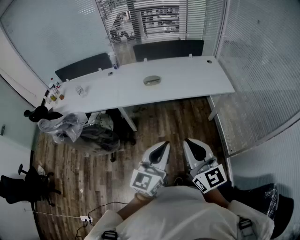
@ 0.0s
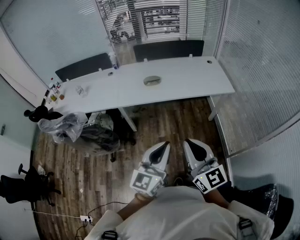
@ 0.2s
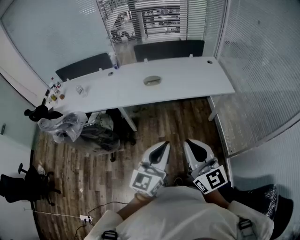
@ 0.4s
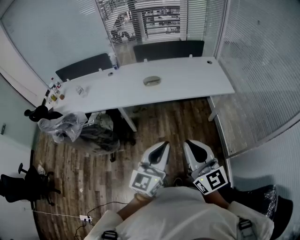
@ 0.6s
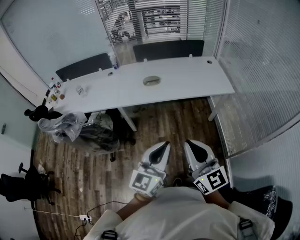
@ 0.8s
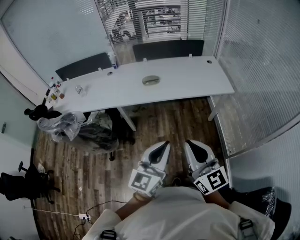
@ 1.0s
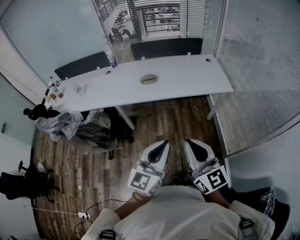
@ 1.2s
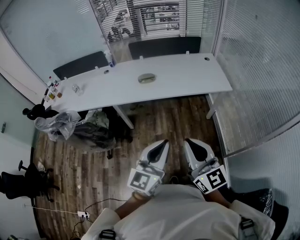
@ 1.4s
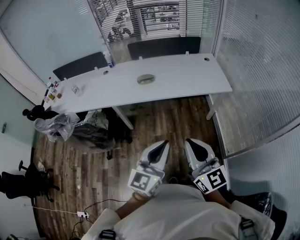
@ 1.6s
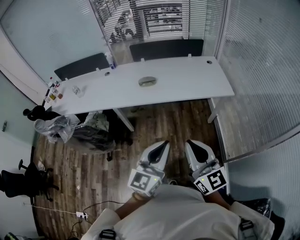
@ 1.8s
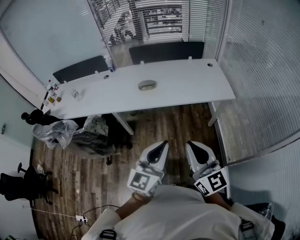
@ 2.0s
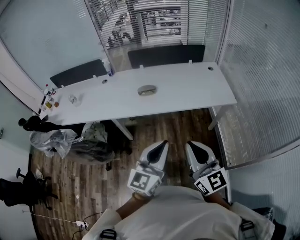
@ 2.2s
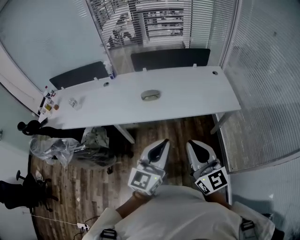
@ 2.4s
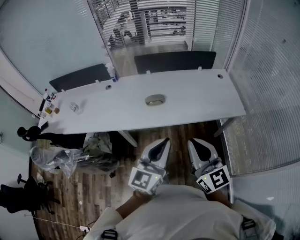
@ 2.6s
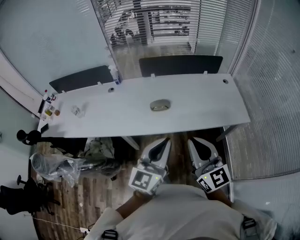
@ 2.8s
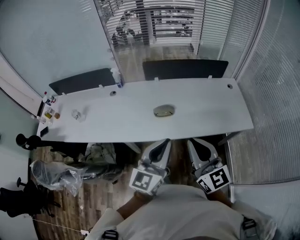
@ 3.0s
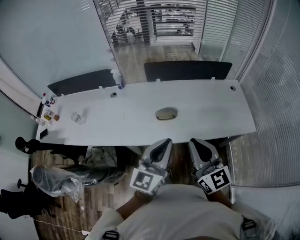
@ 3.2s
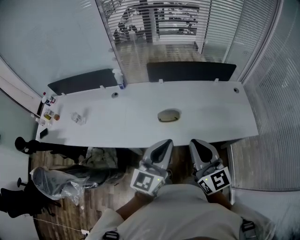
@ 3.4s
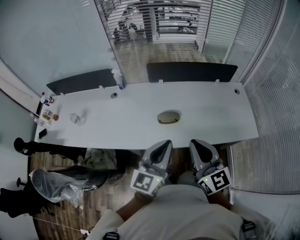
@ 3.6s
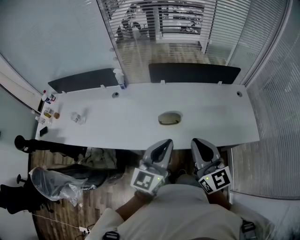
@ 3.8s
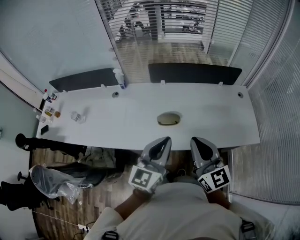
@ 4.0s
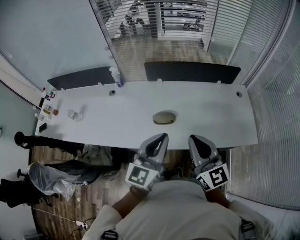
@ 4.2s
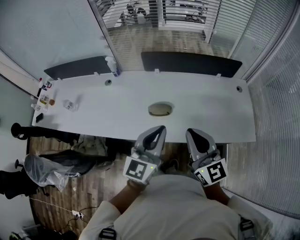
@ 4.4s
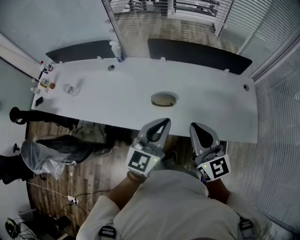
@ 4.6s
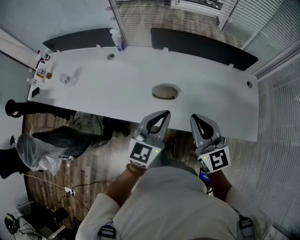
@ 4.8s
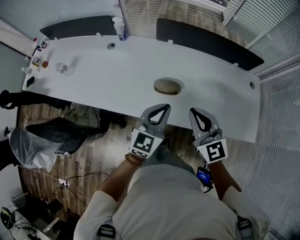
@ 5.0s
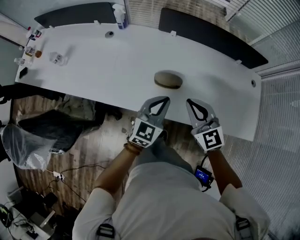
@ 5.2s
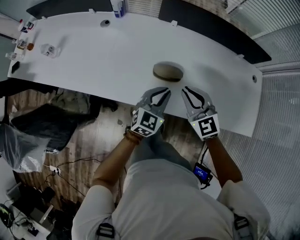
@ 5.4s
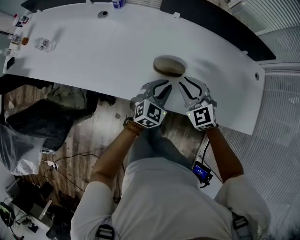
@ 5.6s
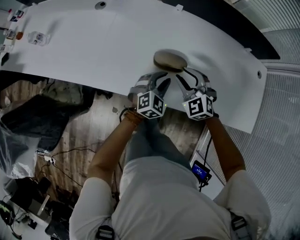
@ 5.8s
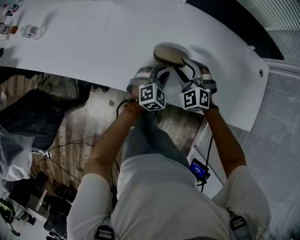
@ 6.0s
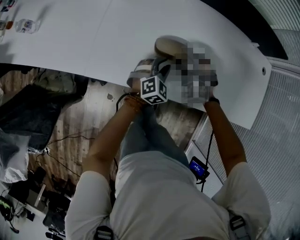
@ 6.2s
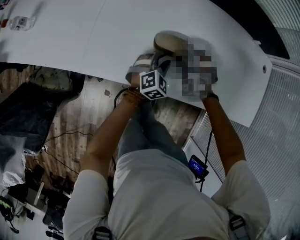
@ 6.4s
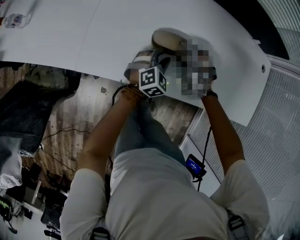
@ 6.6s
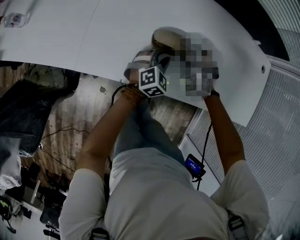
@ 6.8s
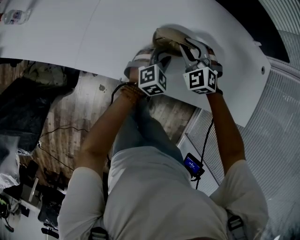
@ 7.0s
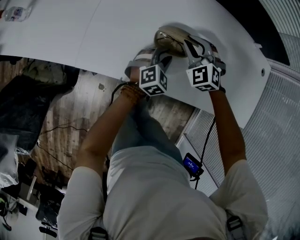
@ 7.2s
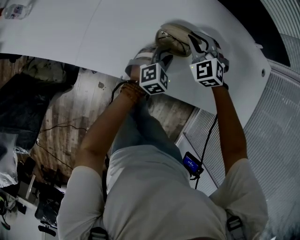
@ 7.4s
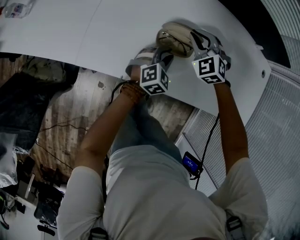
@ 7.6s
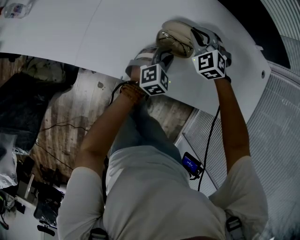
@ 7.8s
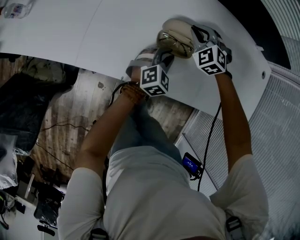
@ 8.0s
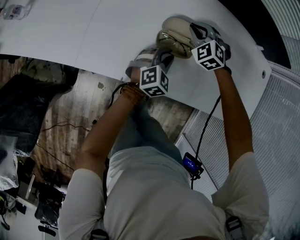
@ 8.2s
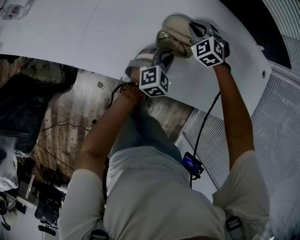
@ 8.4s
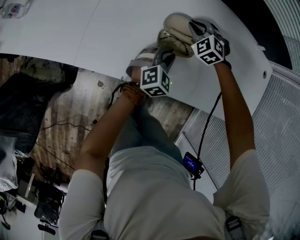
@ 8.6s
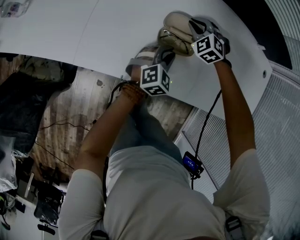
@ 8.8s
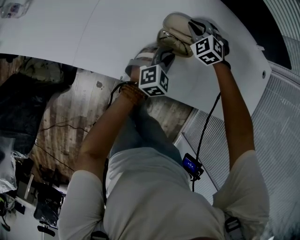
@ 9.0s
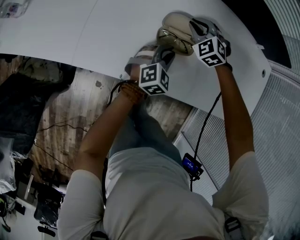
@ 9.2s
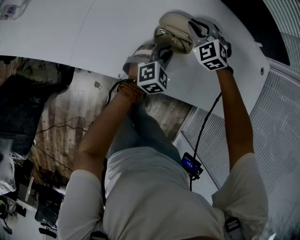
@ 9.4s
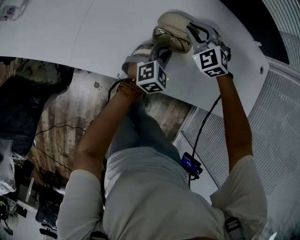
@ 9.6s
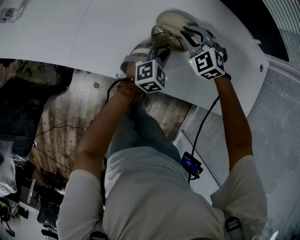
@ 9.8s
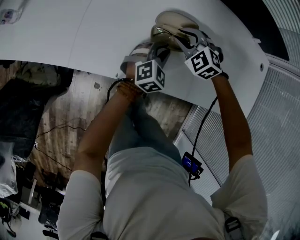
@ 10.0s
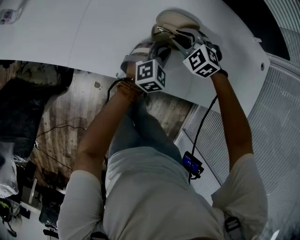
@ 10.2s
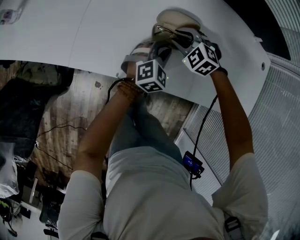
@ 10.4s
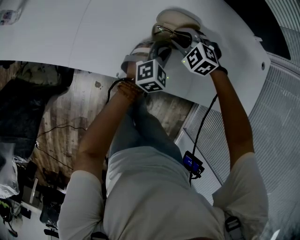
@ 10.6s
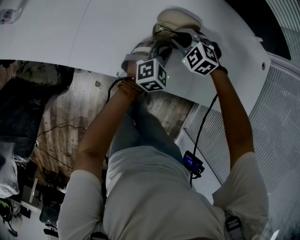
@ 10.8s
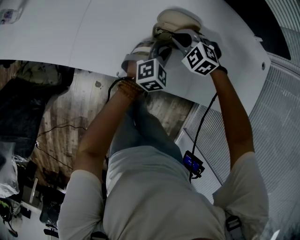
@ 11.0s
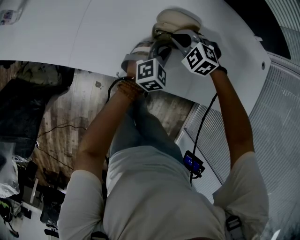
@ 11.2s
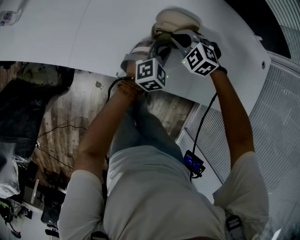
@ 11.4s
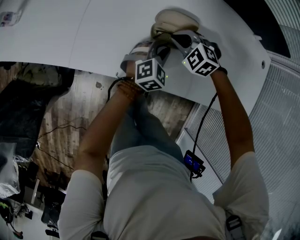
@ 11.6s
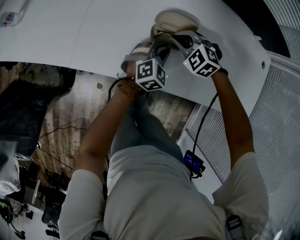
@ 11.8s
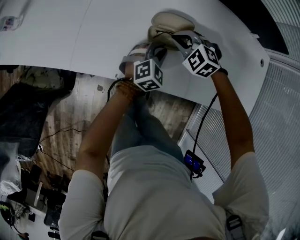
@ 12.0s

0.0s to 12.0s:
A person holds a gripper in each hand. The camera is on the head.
0.0s to 1.6s: The two grippers go some 10 cm to the right.
1.6s to 3.0s: Both grippers travel together forward and to the left, about 40 cm.
3.0s to 4.4s: The two grippers go approximately 15 cm forward.
4.4s to 6.0s: The right gripper heads downward and forward, covering roughly 40 cm, angles its fingers downward, by about 40 degrees, and opens, while the left gripper goes roughly 40 cm downward, points its fingers some 40 degrees further downward, and opens its fingers.
6.0s to 7.6s: The right gripper shifts some 10 cm forward, and closes its fingers.
7.6s to 9.0s: The right gripper is displaced downward and forward by about 10 cm.
9.0s to 10.4s: The right gripper shifts some 10 cm backward, and opens.
10.4s to 12.0s: The right gripper closes its fingers.

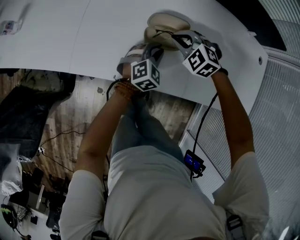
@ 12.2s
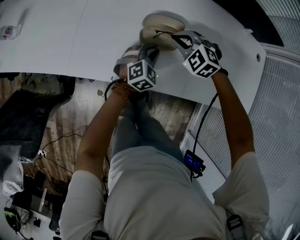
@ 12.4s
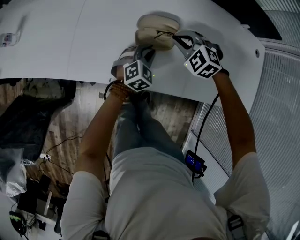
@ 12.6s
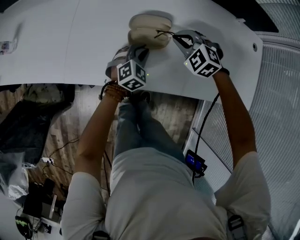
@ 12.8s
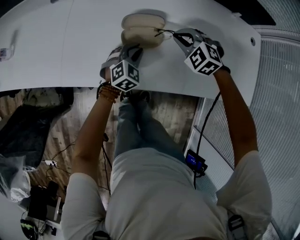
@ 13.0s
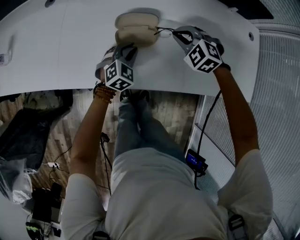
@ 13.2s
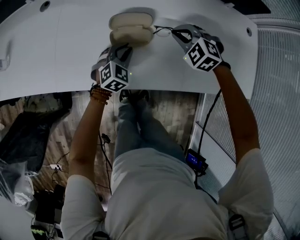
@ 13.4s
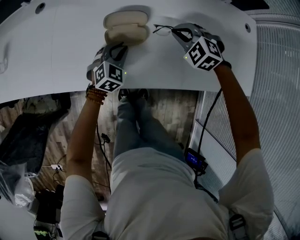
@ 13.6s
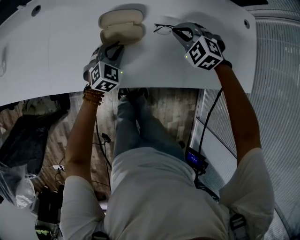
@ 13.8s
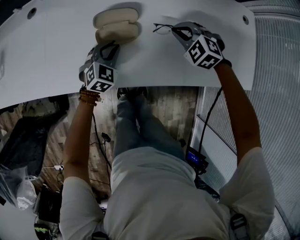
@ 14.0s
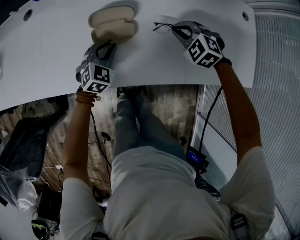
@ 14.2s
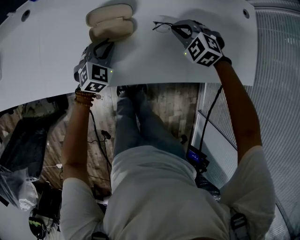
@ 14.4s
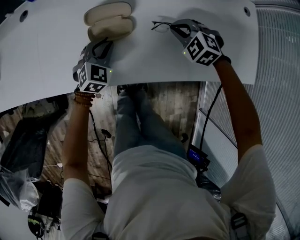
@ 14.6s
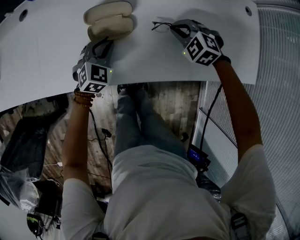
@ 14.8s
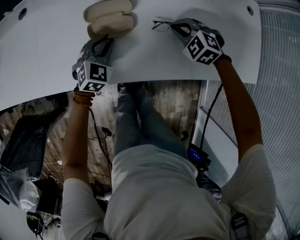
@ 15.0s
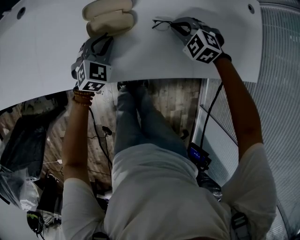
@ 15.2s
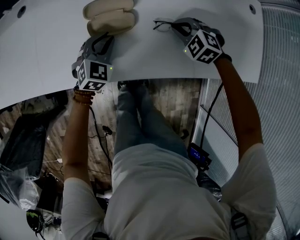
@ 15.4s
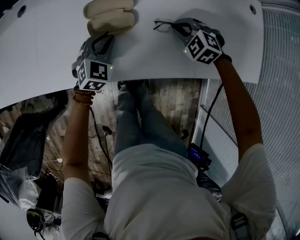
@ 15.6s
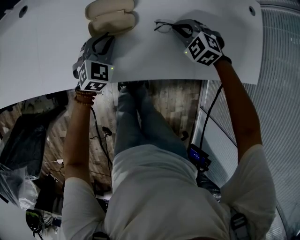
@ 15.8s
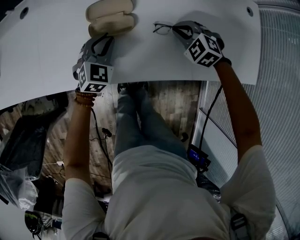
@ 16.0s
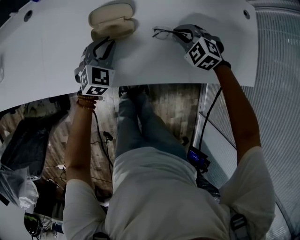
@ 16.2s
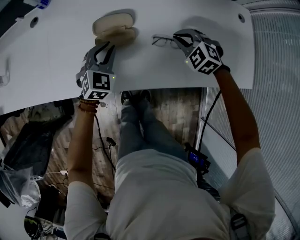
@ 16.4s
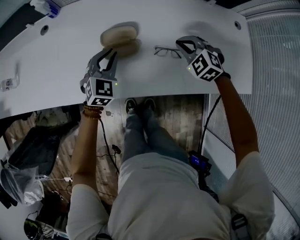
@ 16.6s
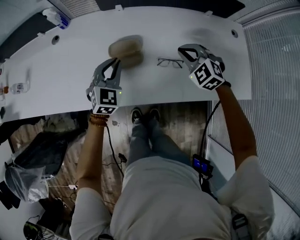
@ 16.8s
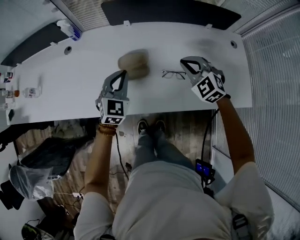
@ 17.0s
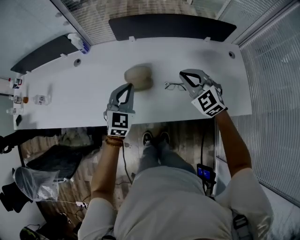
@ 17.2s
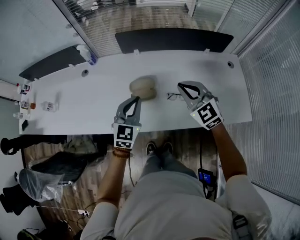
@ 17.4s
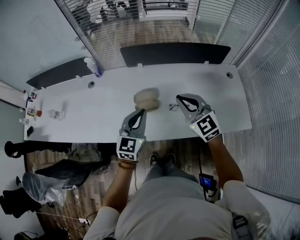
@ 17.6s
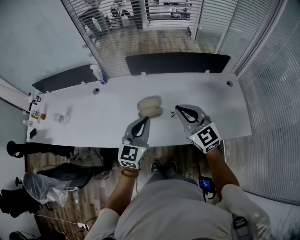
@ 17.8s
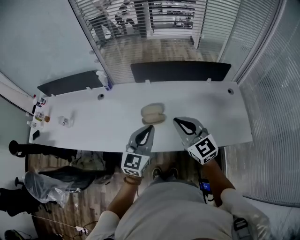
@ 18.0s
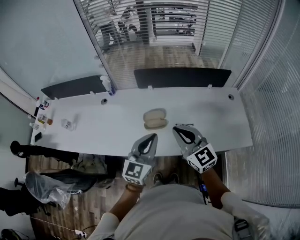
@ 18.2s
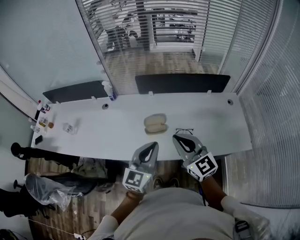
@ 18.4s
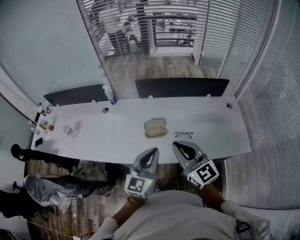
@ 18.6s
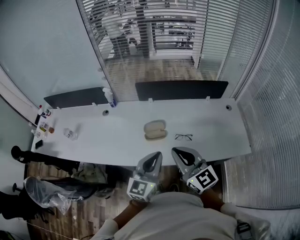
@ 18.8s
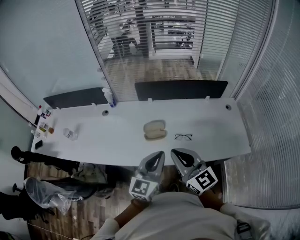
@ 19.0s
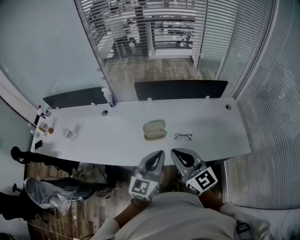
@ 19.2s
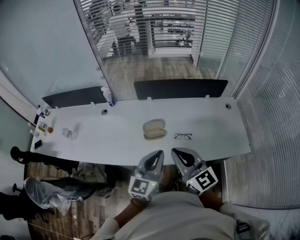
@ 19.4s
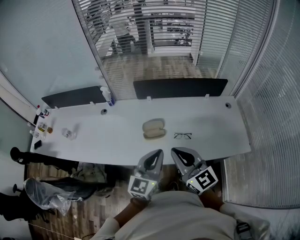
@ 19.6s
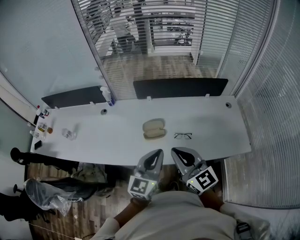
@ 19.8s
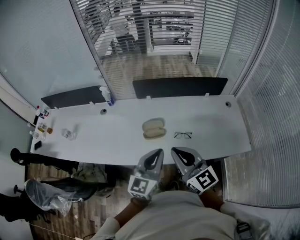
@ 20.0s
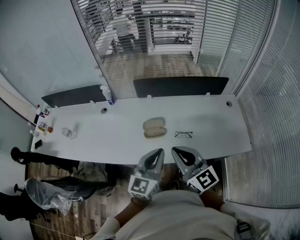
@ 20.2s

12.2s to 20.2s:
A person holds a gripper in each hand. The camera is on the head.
12.2s to 13.8s: The right gripper heads to the right, covering roughly 15 cm.
13.8s to 15.4s: The right gripper moves downward, some 5 cm.
15.4s to 17.0s: Both grippers move upward, approximately 20 cm. The right gripper changes its angle by approximately 30 degrees.
17.0s to 18.6s: The right gripper travels upward, backward and to the left by approximately 35 cm, and tips its fingers upward by roughly 40 degrees. The left gripper is displaced upward and backward by about 30 cm, and swivels about 30 degrees.
18.6s to 20.2s: The grippers stay close to where they were, moving slightly.

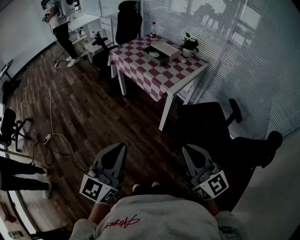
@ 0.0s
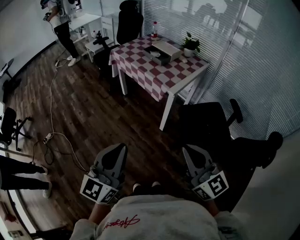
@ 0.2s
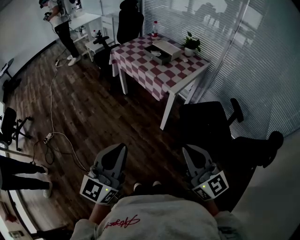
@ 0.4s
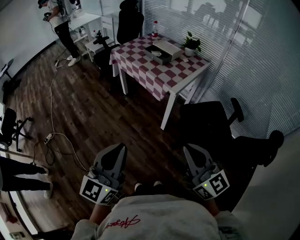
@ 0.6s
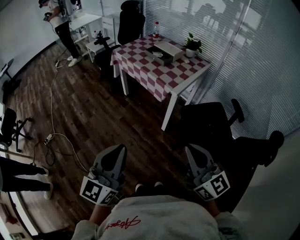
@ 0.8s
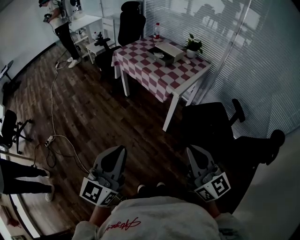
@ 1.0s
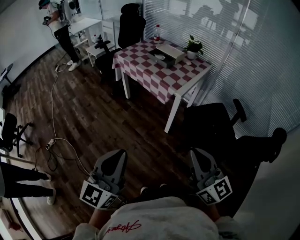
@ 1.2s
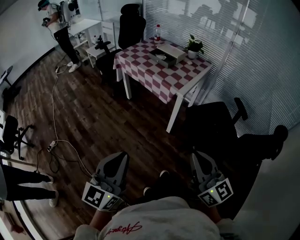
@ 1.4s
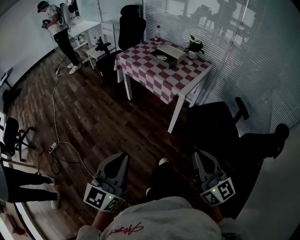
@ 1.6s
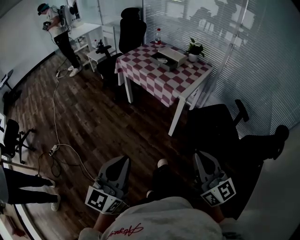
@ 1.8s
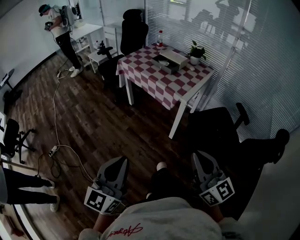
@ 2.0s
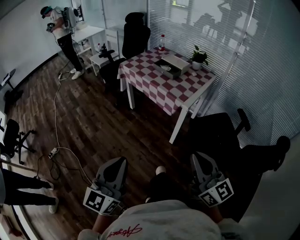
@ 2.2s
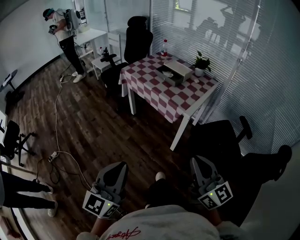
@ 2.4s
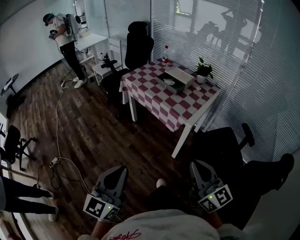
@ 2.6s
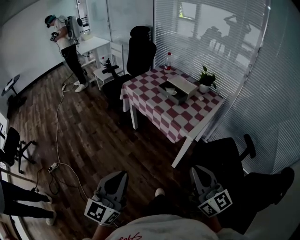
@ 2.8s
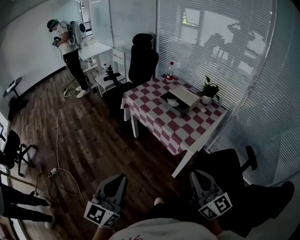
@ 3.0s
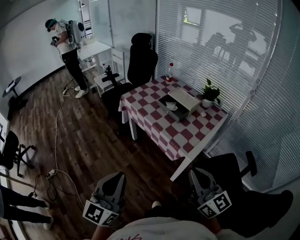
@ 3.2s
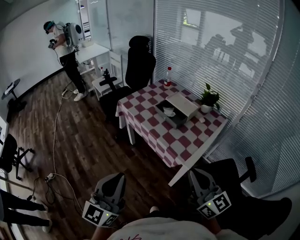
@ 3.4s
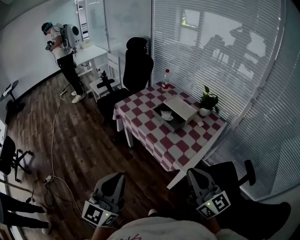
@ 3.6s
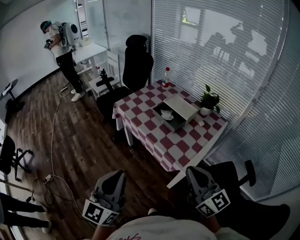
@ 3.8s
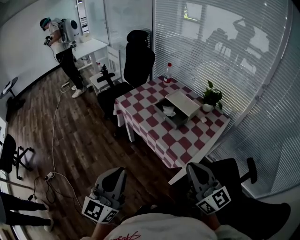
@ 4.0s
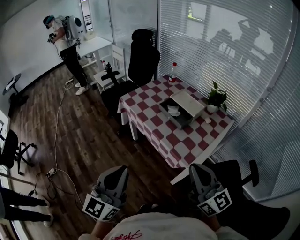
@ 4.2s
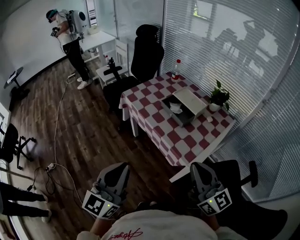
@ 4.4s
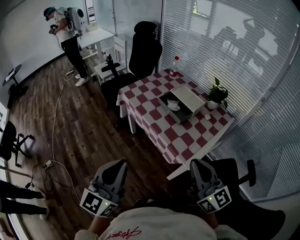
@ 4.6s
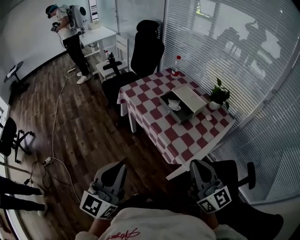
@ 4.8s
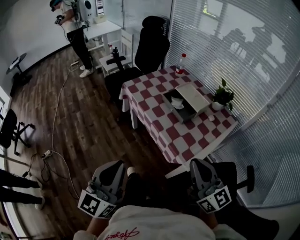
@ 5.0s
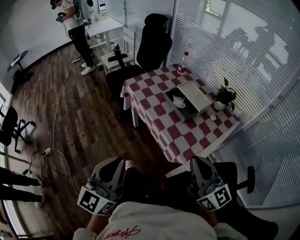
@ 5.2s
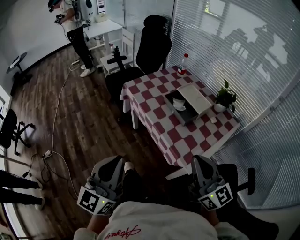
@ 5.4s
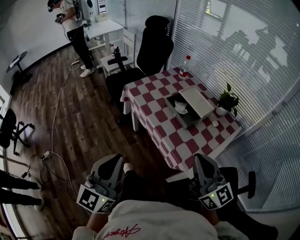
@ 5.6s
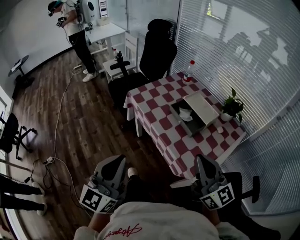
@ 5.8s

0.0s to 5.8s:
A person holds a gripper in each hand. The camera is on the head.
0.0s to 1.4s: The right gripper moves to the left, approximately 5 cm; the left gripper is displaced to the left by roughly 10 cm.
1.4s to 2.8s: The grippers both shift forward by roughly 20 cm.
2.8s to 4.4s: Both grippers move forward, about 25 cm.
4.4s to 5.8s: Both grippers move forward, some 10 cm.
